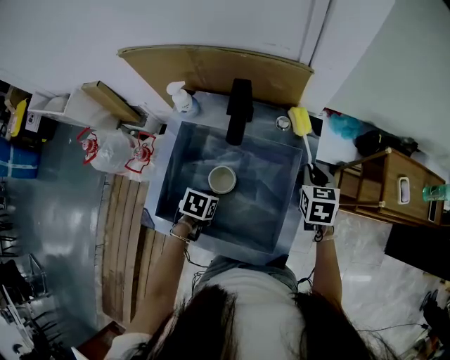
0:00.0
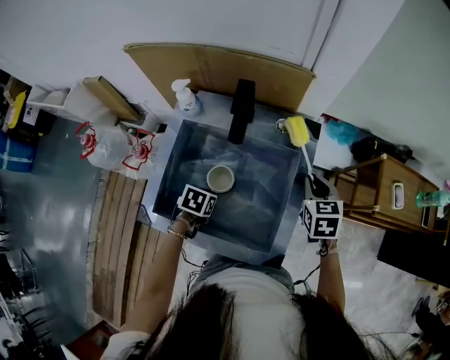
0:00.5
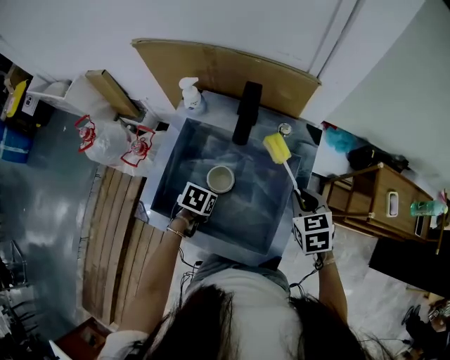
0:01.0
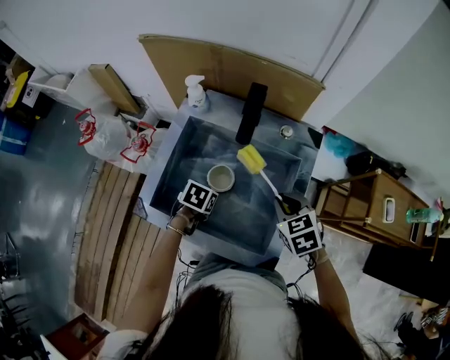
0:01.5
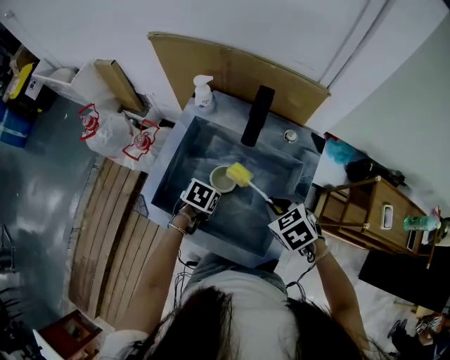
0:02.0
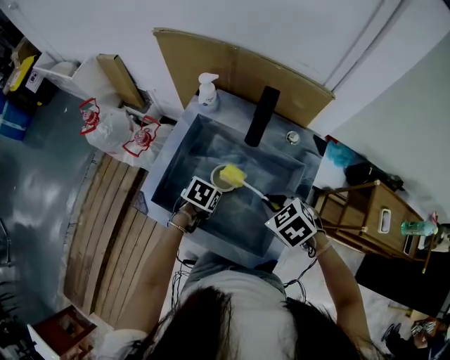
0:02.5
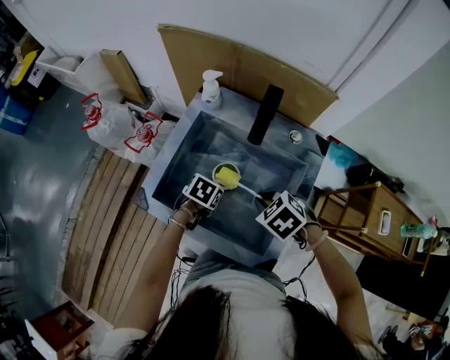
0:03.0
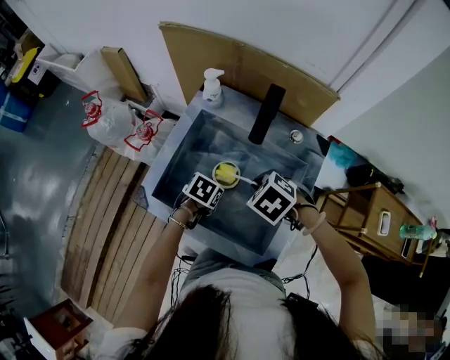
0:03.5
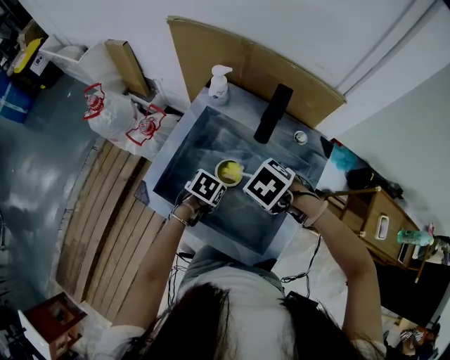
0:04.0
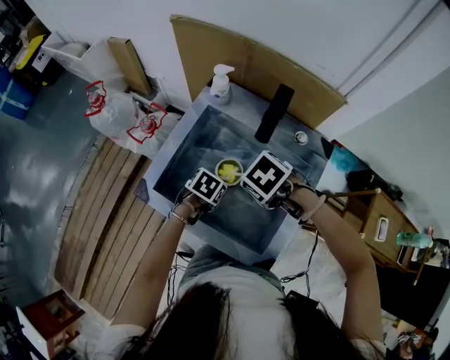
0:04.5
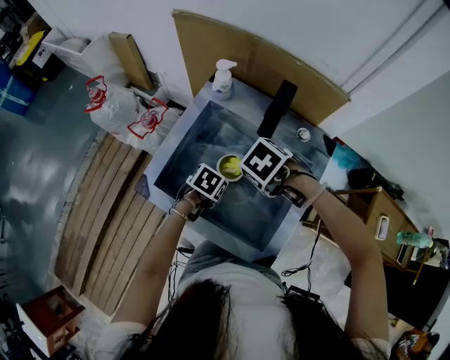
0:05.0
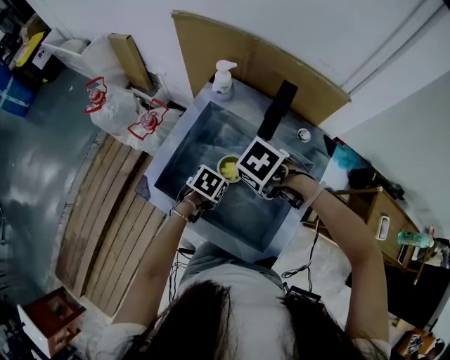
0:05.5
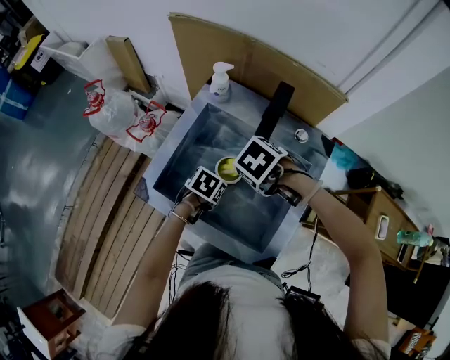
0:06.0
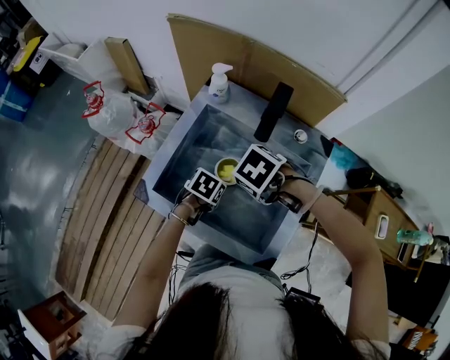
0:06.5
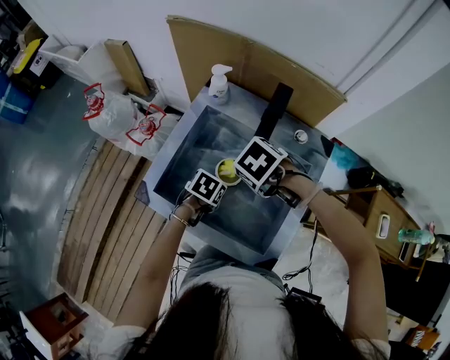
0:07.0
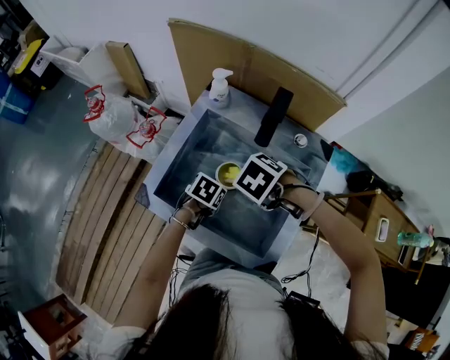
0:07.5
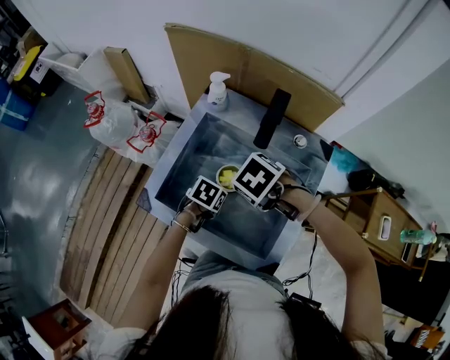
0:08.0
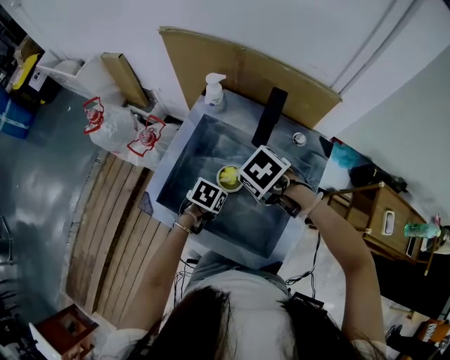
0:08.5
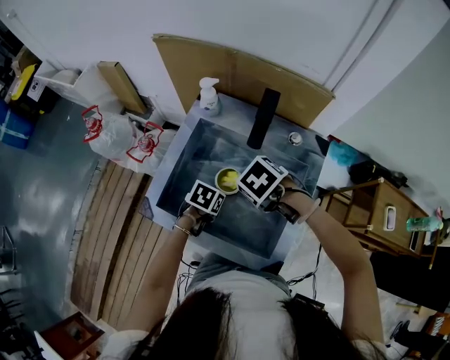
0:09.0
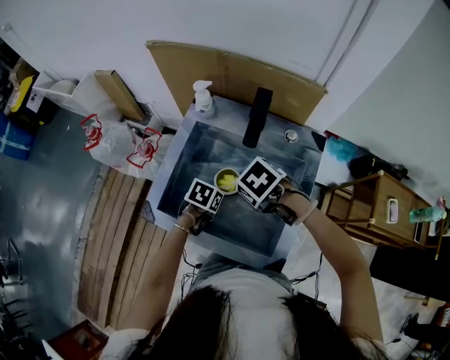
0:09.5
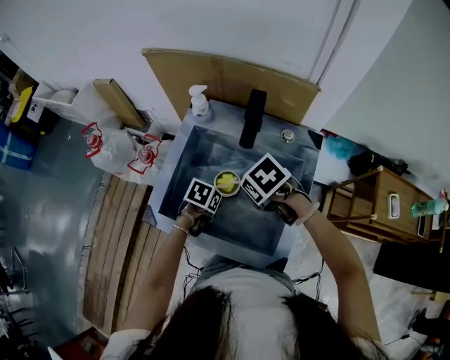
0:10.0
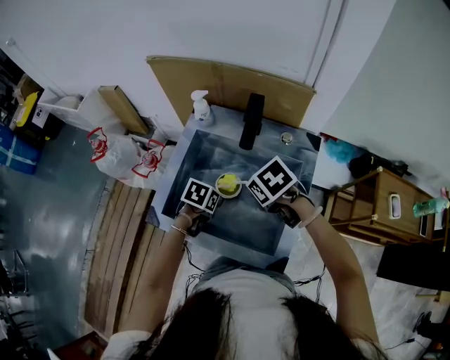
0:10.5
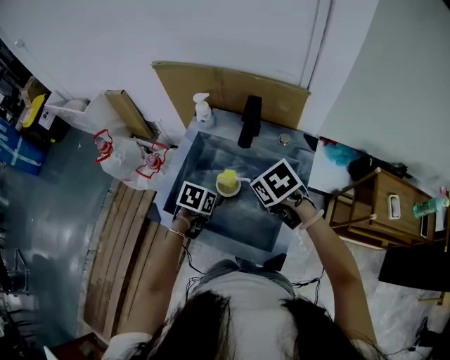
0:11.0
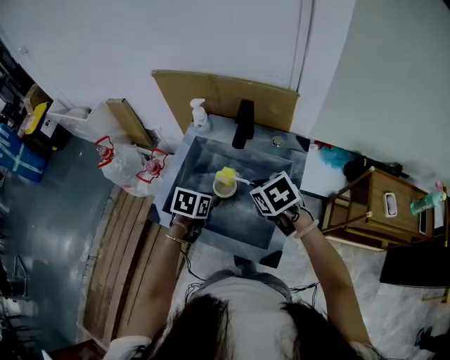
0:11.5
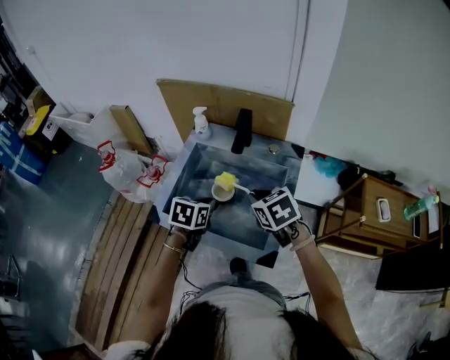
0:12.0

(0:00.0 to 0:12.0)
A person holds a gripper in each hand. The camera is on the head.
0:00.0 - 0:02.0: The right gripper goes some 15 cm backward and to the left, and swivels some 50 degrees.
0:02.0 - 0:04.0: The right gripper moves roughly 10 cm, and swivels some 30 degrees.
0:04.0 - 0:08.0: The grippers move only a little.
0:08.0 - 0:10.0: The right gripper swivels some 20 degrees.
0:10.0 - 0:12.0: The right gripper moves some 10 cm, and turns by about 30 degrees. Meanwhile the left gripper travels upward by some 15 cm, and turns by roughly 30 degrees.

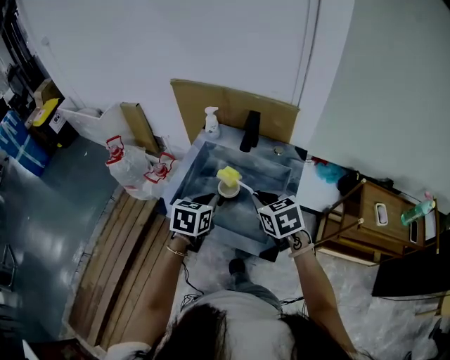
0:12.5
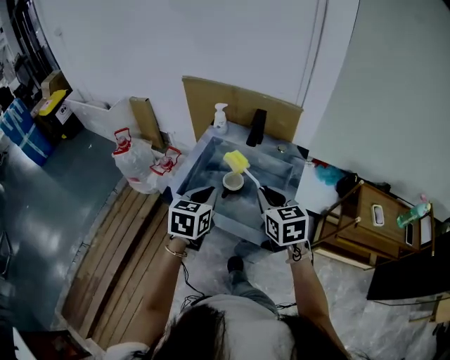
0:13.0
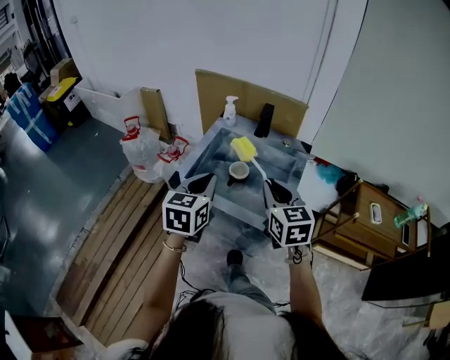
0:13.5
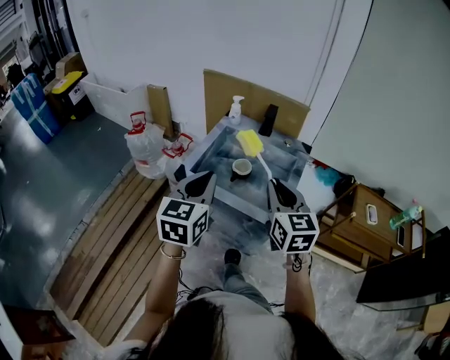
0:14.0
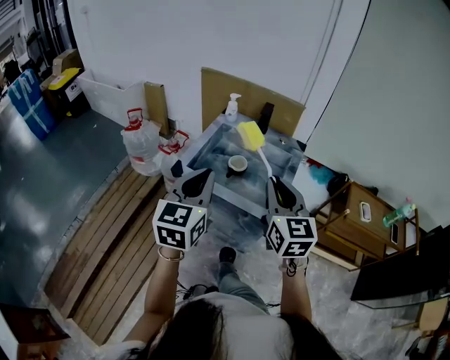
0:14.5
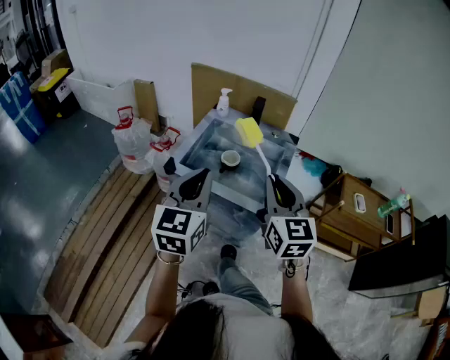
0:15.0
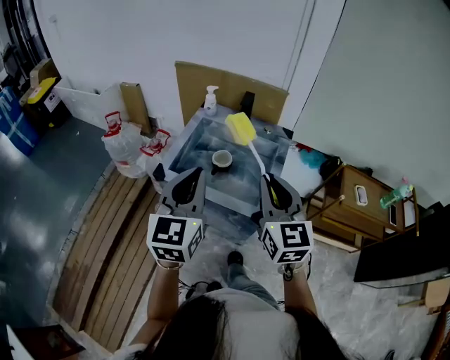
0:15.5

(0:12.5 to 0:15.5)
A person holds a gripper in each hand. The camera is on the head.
0:12.5 - 0:14.0: The right gripper travels backward and upward by about 20 cm, and turns by about 30 degrees. The left gripper shifts roughly 25 cm upward and backward, and turns by about 30 degrees.
0:14.0 - 0:15.5: The left gripper shifts by about 5 cm.

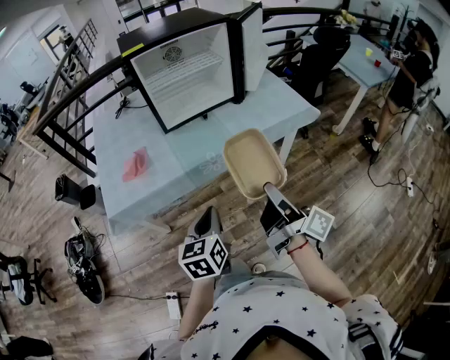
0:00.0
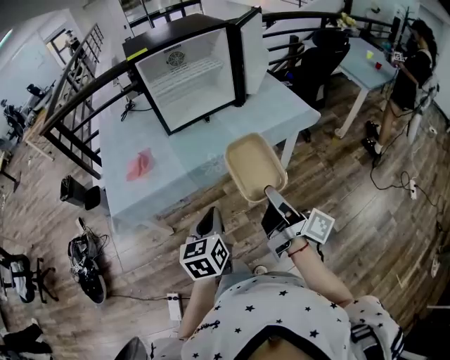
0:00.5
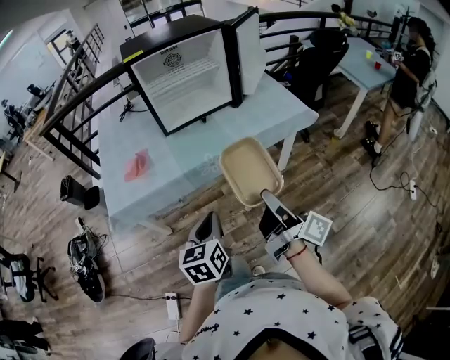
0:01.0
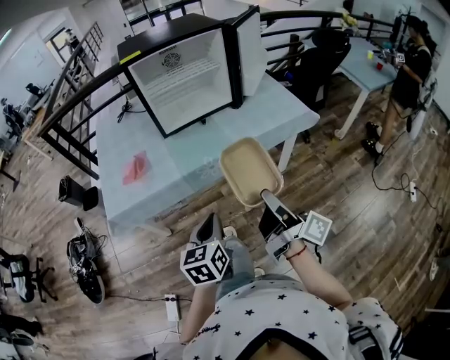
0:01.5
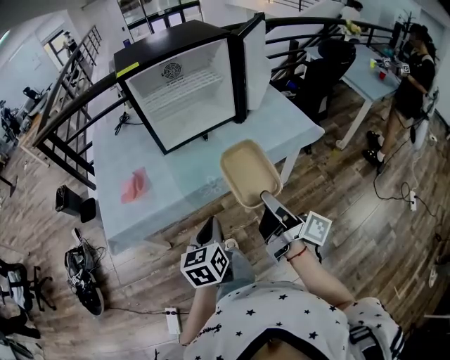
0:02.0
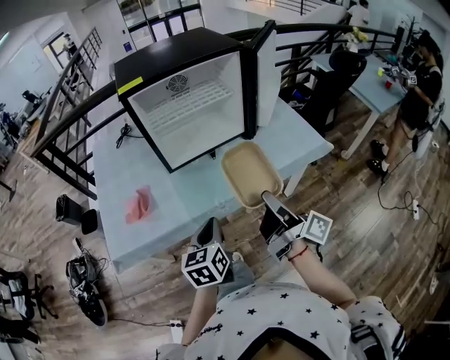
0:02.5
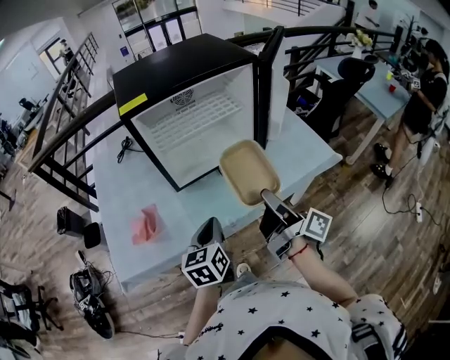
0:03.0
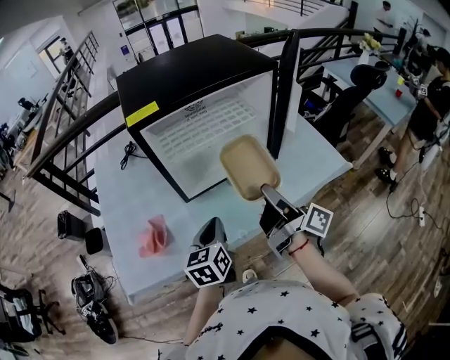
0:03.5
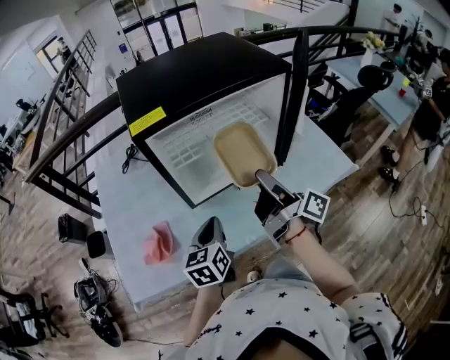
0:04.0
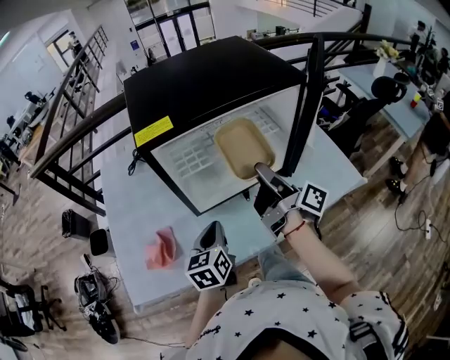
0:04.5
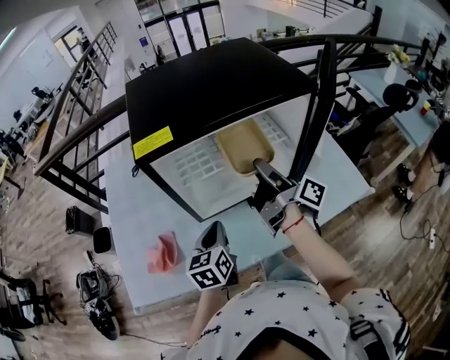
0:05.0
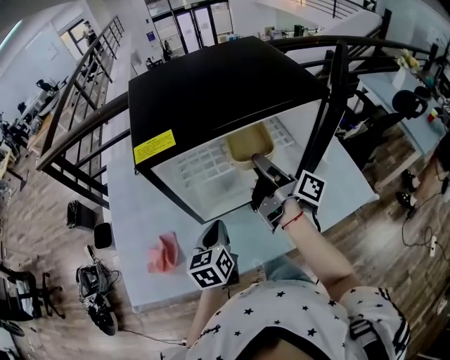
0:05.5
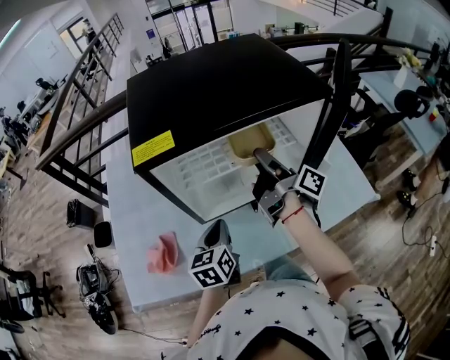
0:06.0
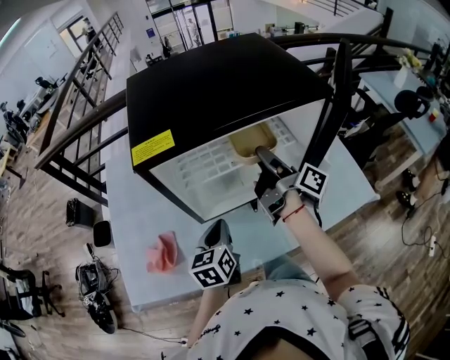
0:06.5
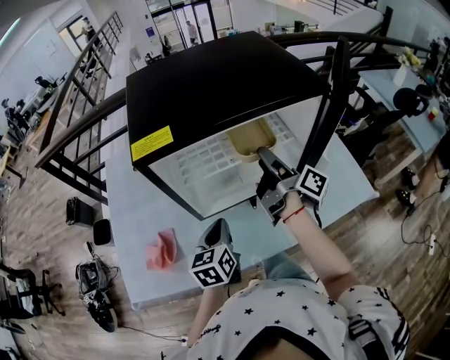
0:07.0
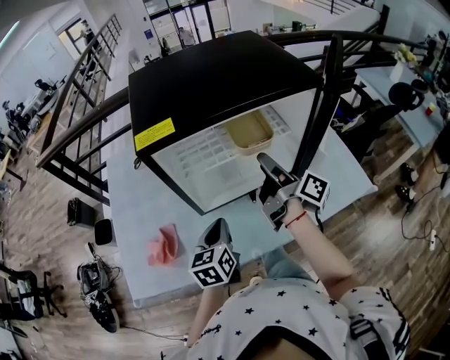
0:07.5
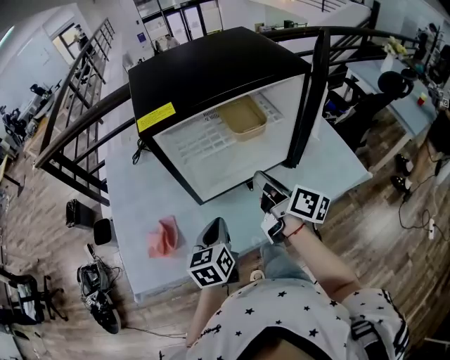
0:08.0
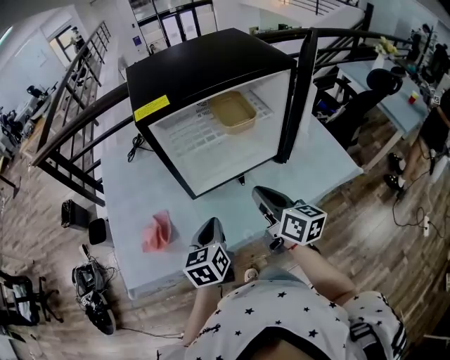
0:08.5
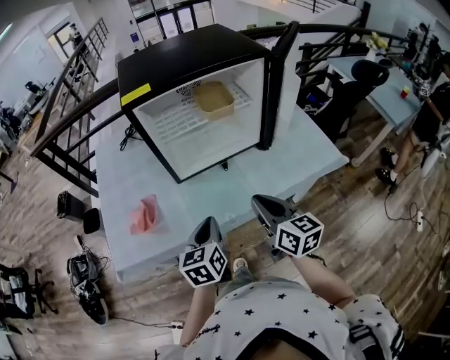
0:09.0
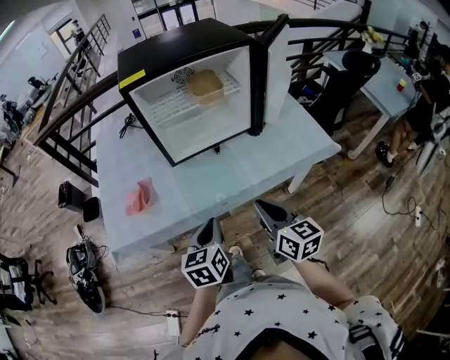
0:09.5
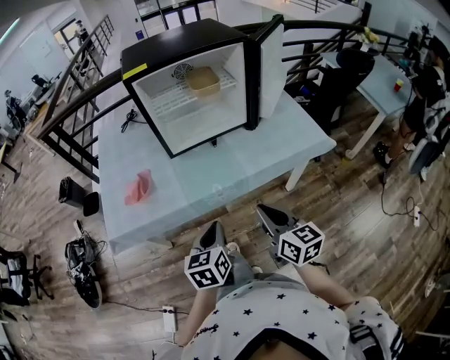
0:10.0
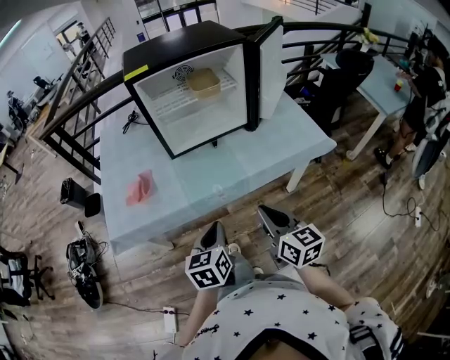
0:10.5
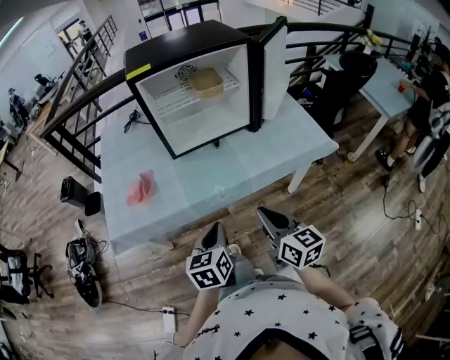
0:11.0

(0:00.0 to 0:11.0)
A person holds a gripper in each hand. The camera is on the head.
0:00.0 - 0:02.0: Both grippers travel together forward, approximately 5 cm.
0:02.0 - 0:03.5: Both grippers travel together forward, roughly 25 cm.
0:03.5 - 0:05.5: The left gripper heads forward, covering approximately 10 cm, while the right gripper goes approximately 20 cm forward.
0:05.5 - 0:07.5: The grippers move only a little.
0:07.5 - 0:09.0: The right gripper goes about 25 cm backward, rotates around the line of its fingers by roughly 50 degrees, counterclockwise from behind, and closes up. The left gripper goes roughly 15 cm backward.
0:09.0 - 0:11.0: The two grippers go roughly 15 cm backward.

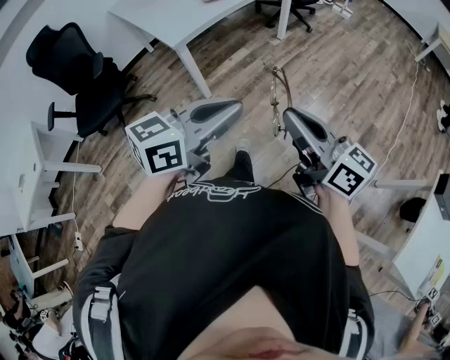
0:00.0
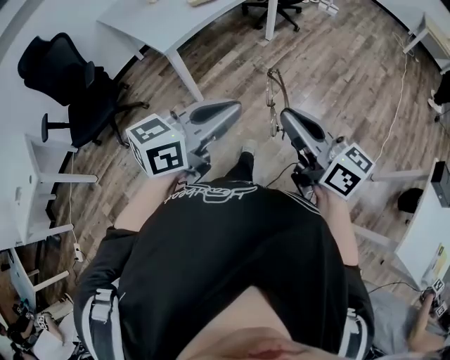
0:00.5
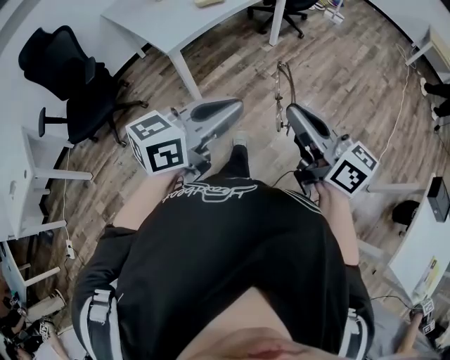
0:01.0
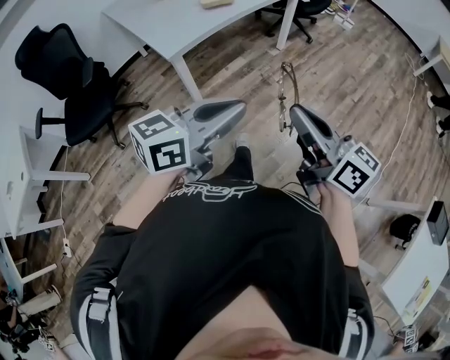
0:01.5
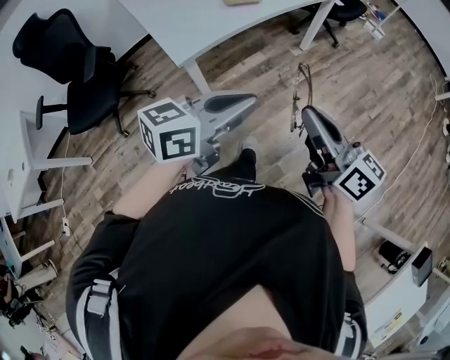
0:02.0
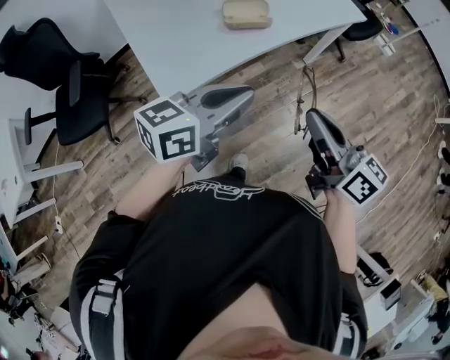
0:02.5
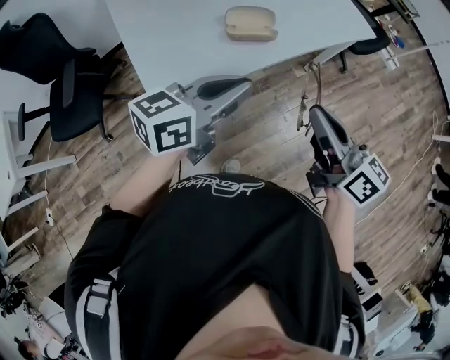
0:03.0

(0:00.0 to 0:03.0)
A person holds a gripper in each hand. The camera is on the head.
0:00.0 - 0:01.5: Both grippers move forward, approximately 10 cm.
0:01.5 - 0:03.0: The pair of grippers is taken forward, some 50 cm.
